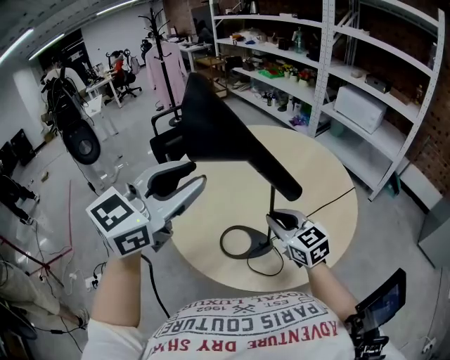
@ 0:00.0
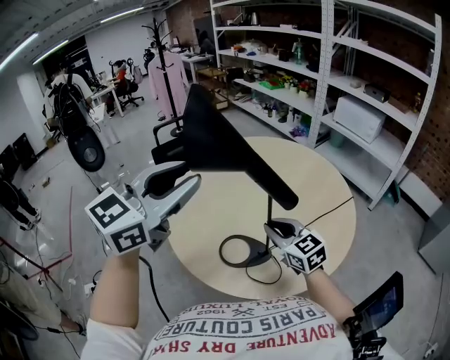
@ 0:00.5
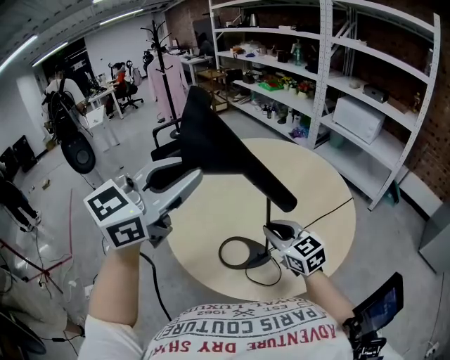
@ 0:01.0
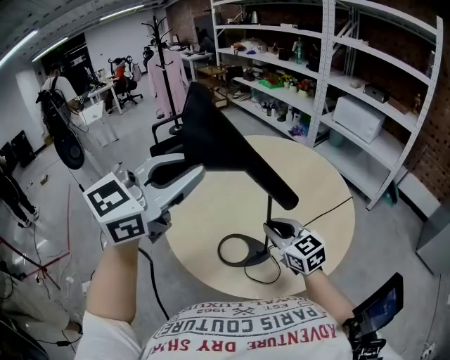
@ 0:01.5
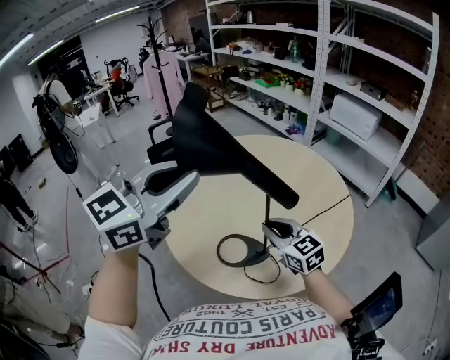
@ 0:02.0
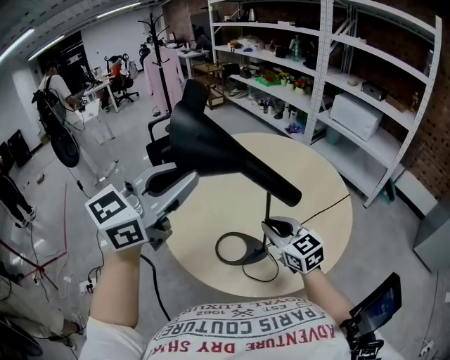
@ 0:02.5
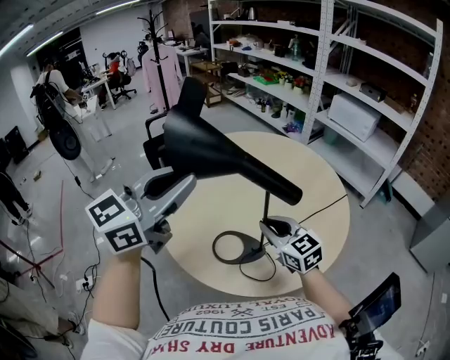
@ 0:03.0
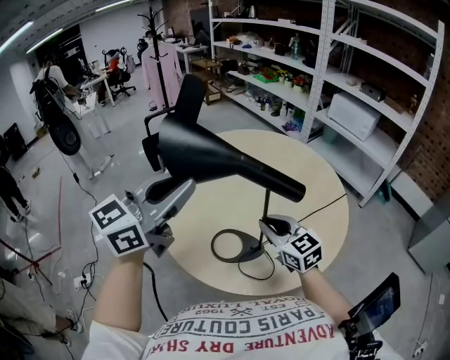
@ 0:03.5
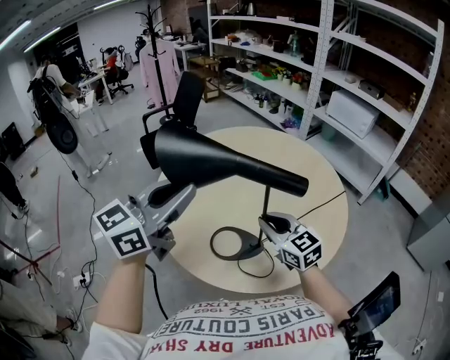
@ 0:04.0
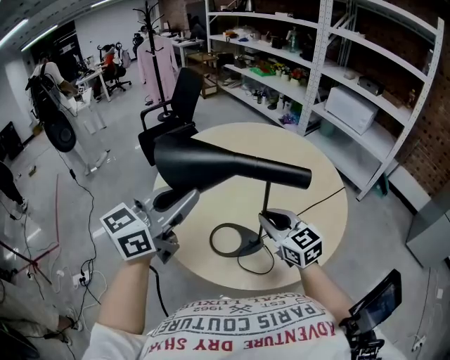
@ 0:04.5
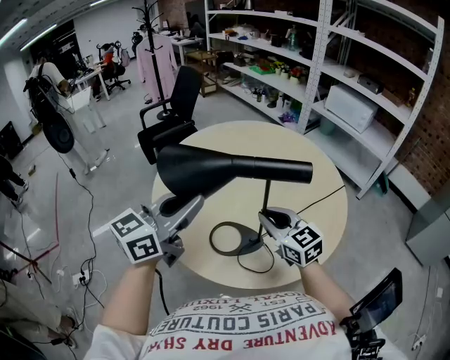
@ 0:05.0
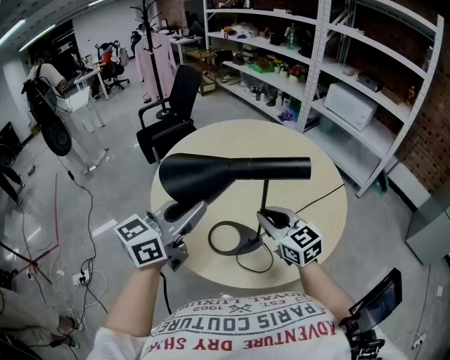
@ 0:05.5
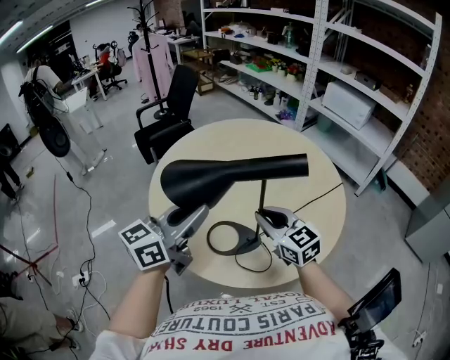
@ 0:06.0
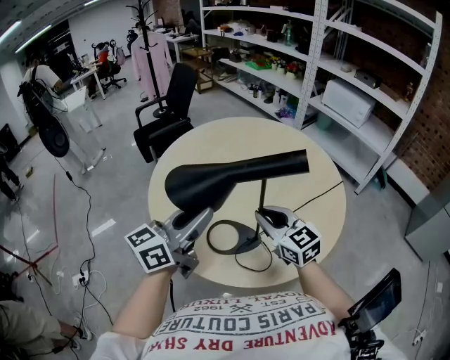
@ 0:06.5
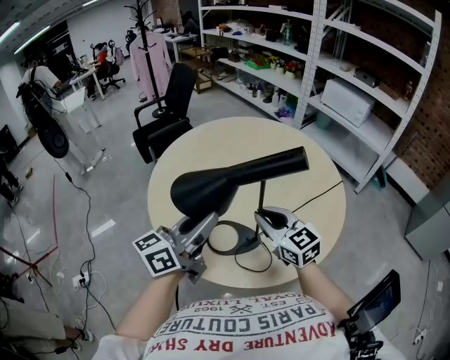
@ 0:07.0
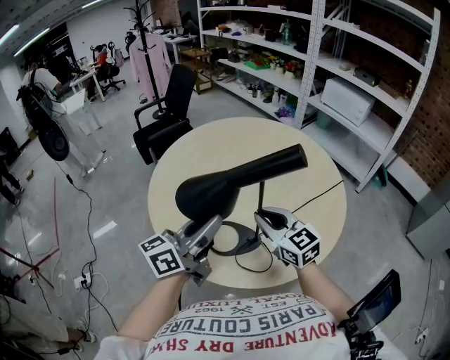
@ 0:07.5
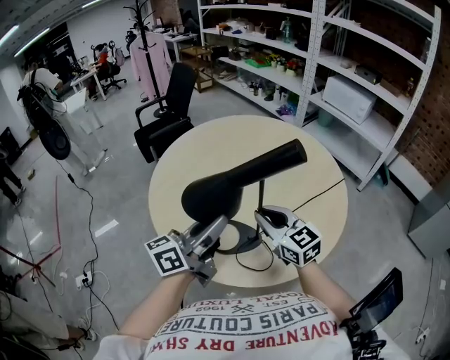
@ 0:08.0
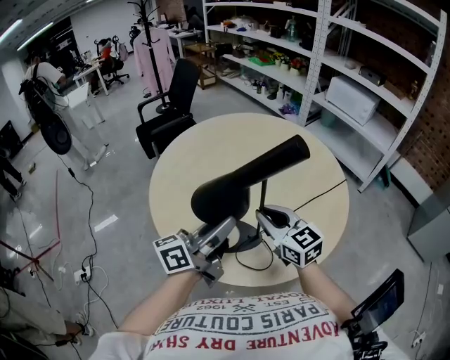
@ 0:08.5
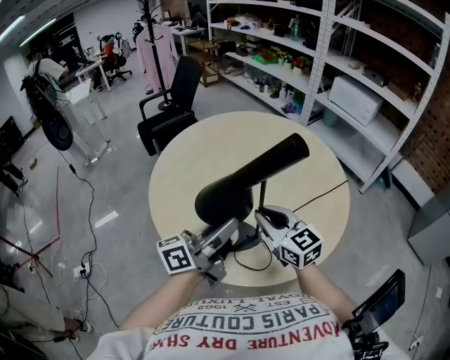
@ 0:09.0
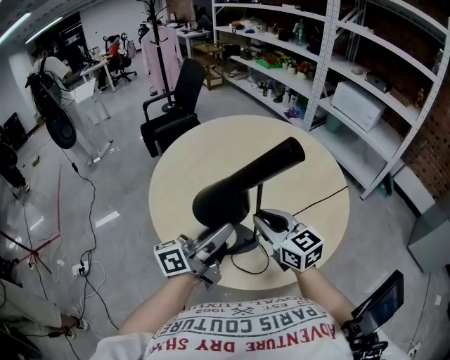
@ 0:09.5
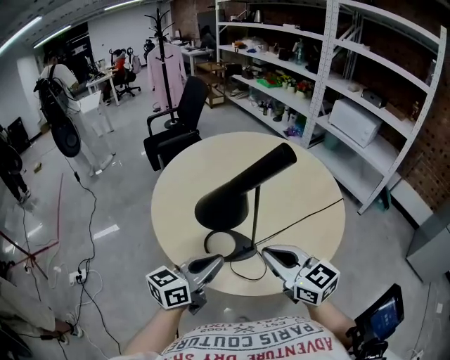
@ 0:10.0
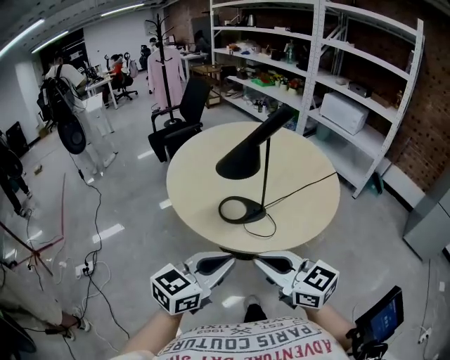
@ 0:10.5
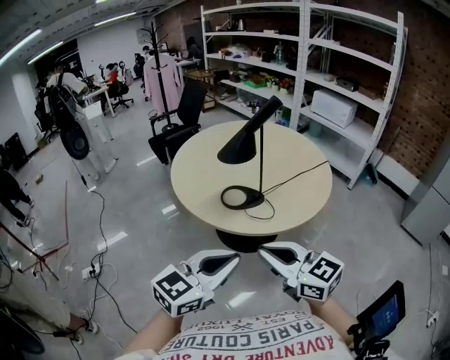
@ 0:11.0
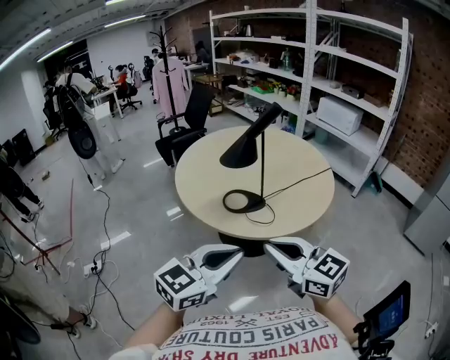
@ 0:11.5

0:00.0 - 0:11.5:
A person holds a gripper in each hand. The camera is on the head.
0:00.0 - 0:02.0: There are only small adjustments of the grippers.
0:02.0 - 0:04.0: The left gripper travels downward by approximately 5 cm.
0:04.0 - 0:06.0: The left gripper moves downward, approximately 10 cm.
0:06.0 - 0:07.5: There are only small adjustments of the grippers.
0:07.5 - 0:09.5: There are only small adjustments of the grippers.
0:09.5 - 0:11.5: The grippers both shift backward by about 35 cm. The left gripper rotates around the line of its fingers by approximately 50 degrees, clockwise from behind, and closes up.

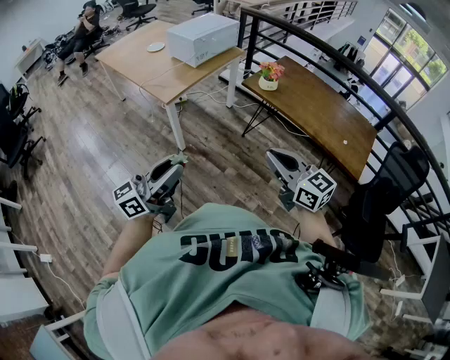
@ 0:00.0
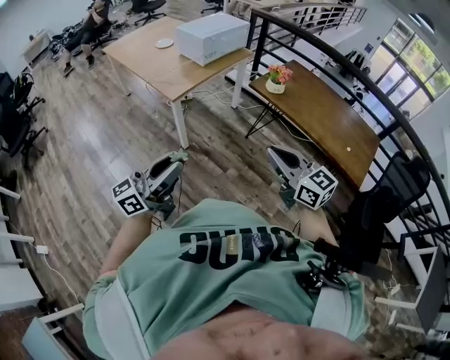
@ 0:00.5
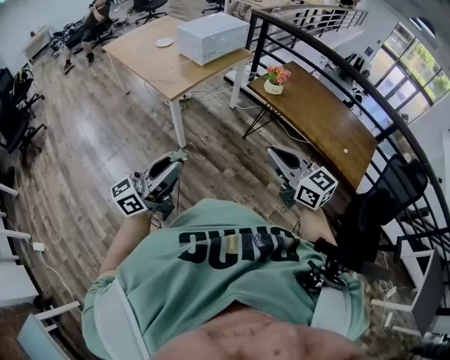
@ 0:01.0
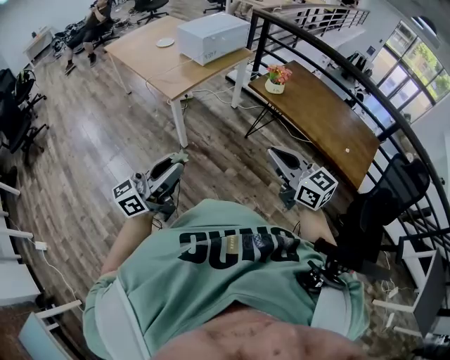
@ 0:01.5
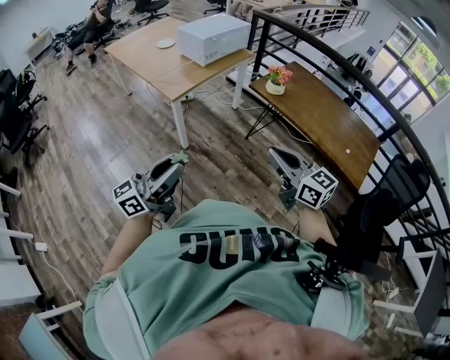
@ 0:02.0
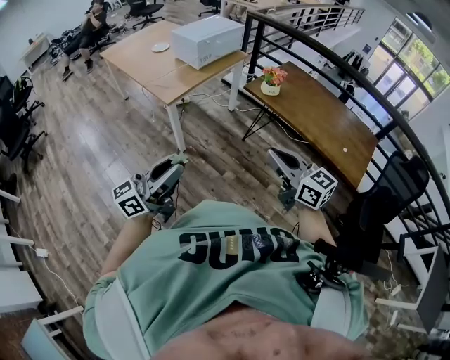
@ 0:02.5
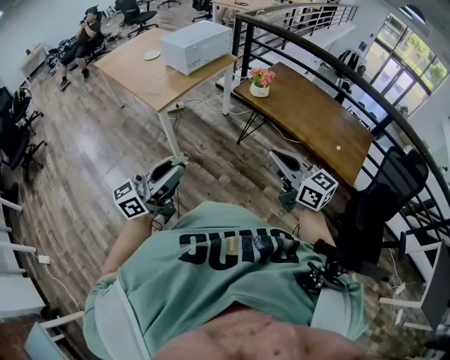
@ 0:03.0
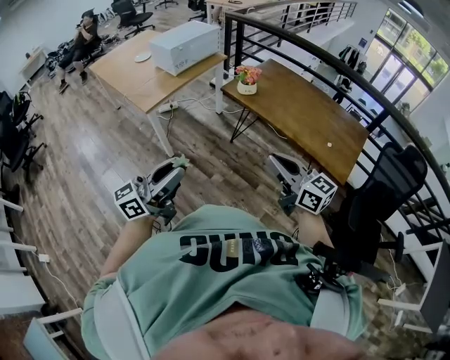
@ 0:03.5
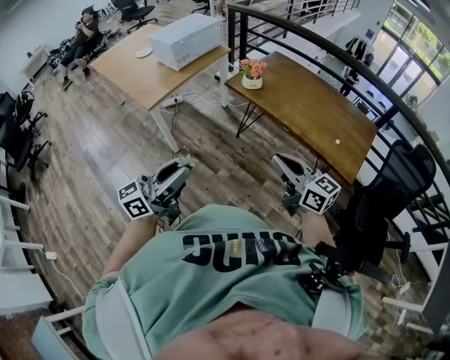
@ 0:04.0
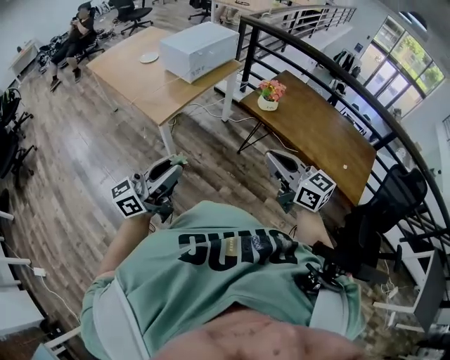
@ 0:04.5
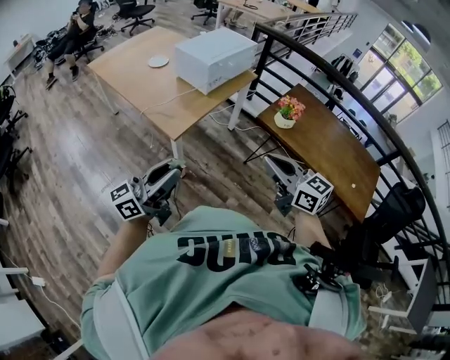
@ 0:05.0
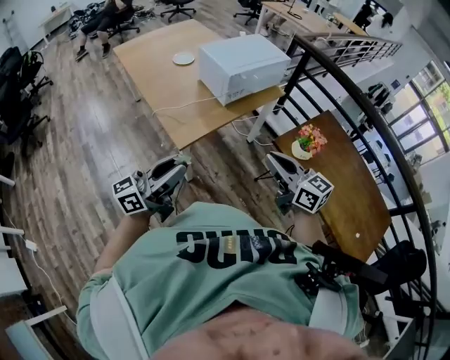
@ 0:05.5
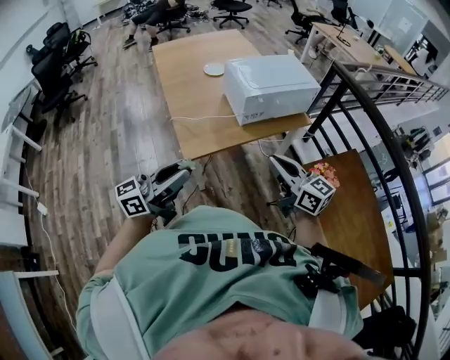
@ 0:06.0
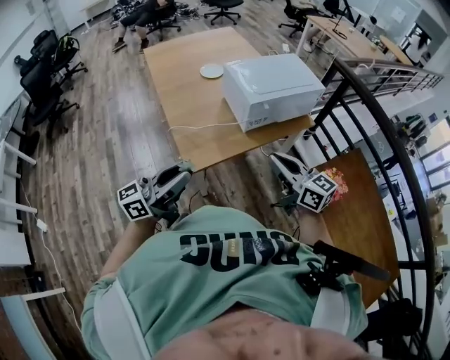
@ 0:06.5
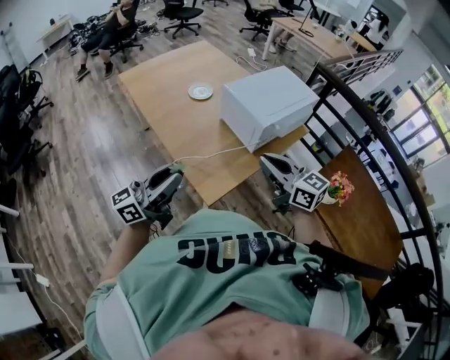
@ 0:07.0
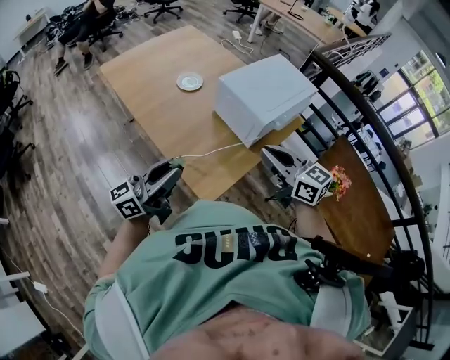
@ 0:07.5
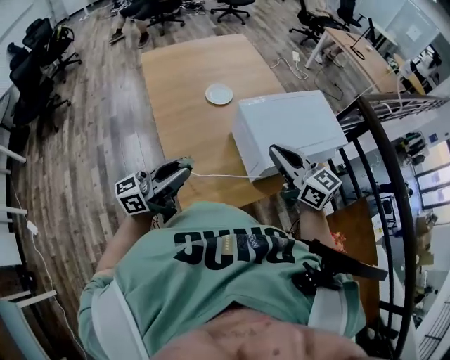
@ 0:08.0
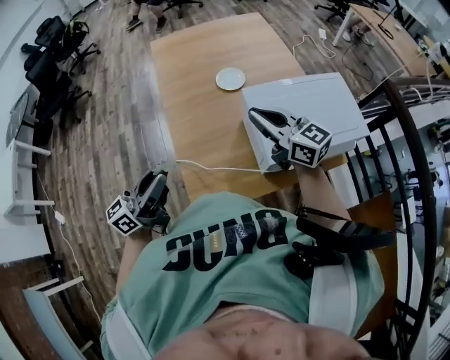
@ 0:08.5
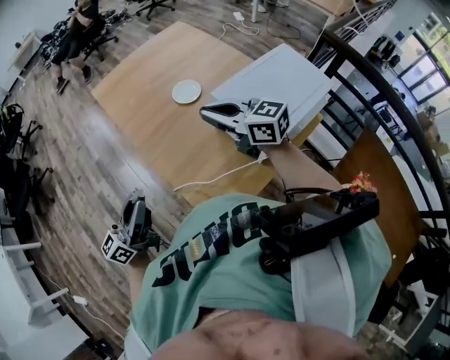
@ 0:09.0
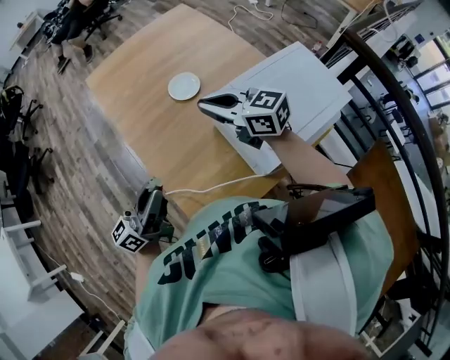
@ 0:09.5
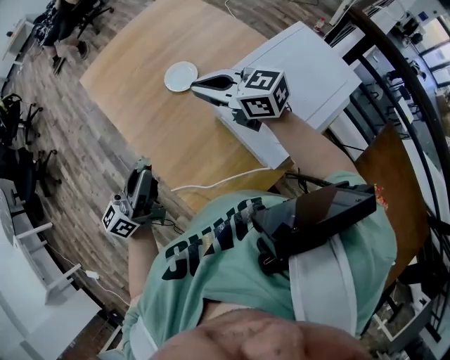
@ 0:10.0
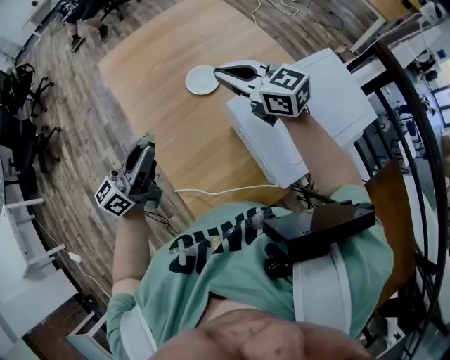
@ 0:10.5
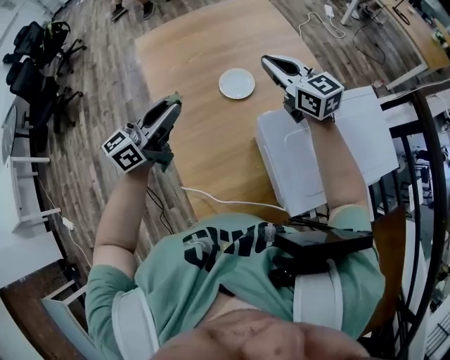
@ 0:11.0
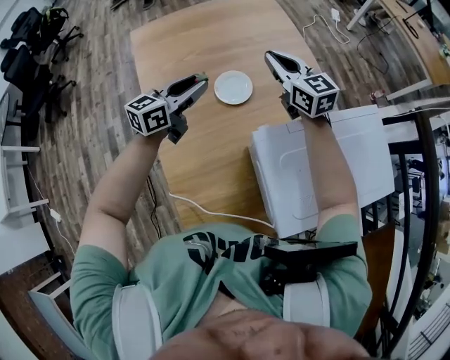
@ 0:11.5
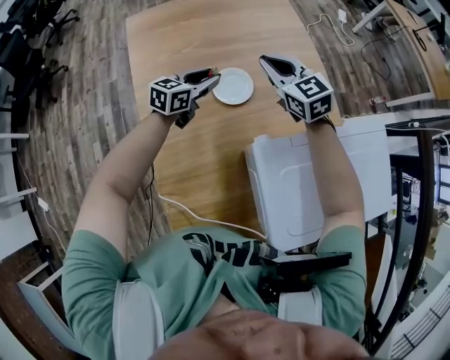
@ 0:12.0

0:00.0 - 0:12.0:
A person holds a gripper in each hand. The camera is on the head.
0:00.0 - 0:02.0: The grippers stay close to where they were, moving slightly.
0:02.0 - 0:04.0: Both grippers move to the right, some 20 cm.
0:04.0 - 0:06.0: The pair of grippers is taken roughly 50 cm. The right gripper swivels some 30 degrees, while the left gripper swivels some 20 degrees.
0:06.0 - 0:08.0: Both grippers travel together forward, about 35 cm.
0:08.0 - 0:10.0: The two grippers go roughly 20 cm forward.
0:10.0 - 0:12.0: The two grippers go roughly 30 cm forward and downward. The left gripper points its fingers roughly 30 degrees further downward, while the right gripper swivels some 30 degrees.

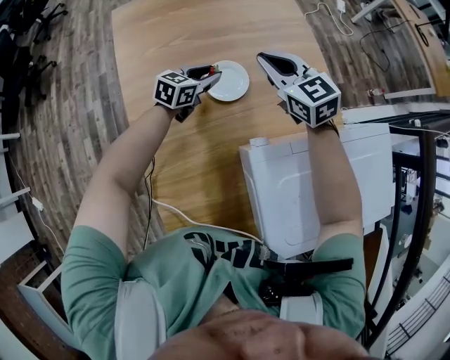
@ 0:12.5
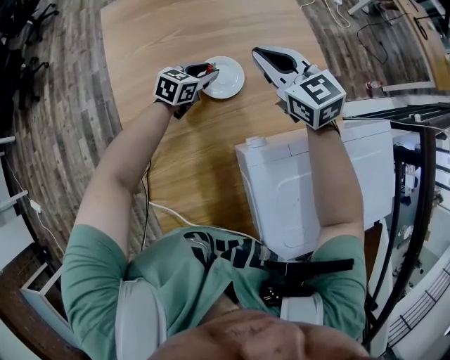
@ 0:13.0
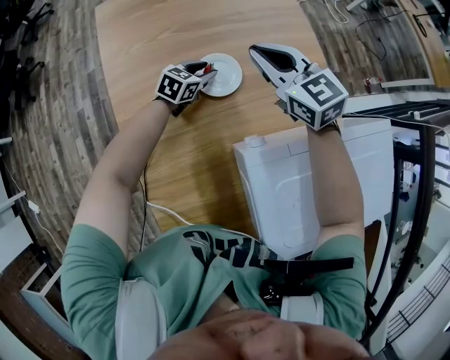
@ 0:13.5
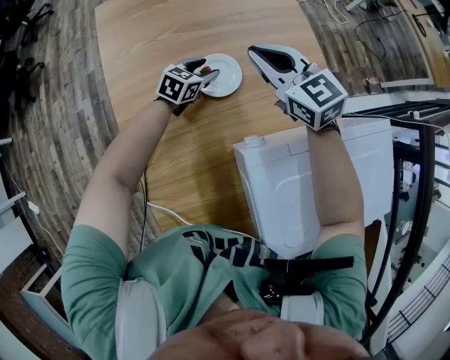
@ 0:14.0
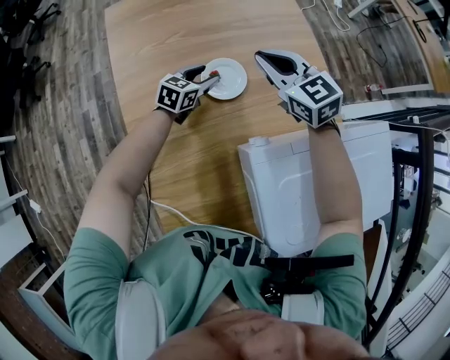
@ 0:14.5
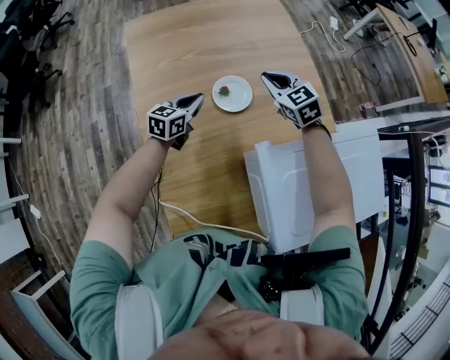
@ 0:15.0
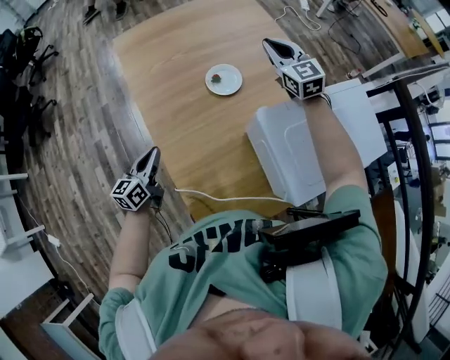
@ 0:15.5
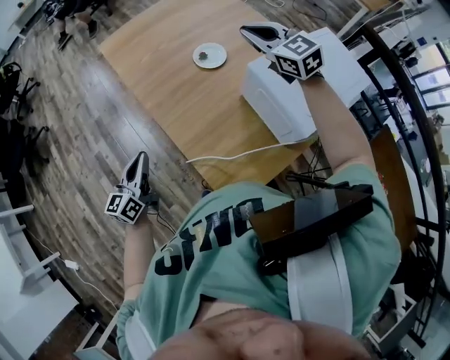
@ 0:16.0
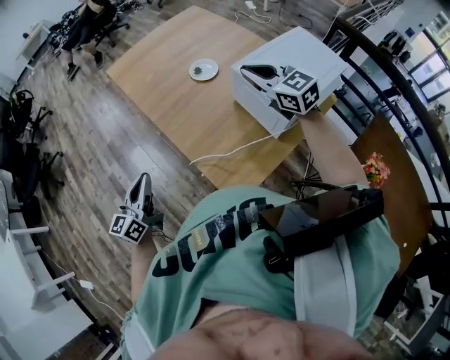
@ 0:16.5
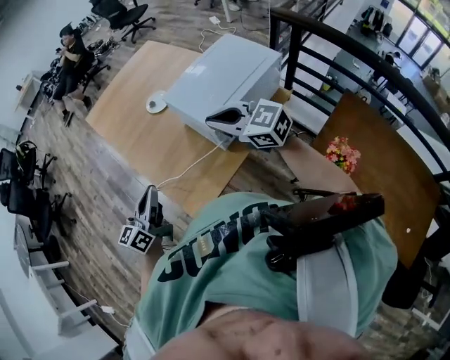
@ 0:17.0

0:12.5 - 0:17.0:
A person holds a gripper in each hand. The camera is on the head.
0:14.5 - 0:17.0: The pair of grippers is taken backward, approximately 50 cm. The left gripper travels upward by some 30 cm, tips its fingers upward by roughly 30 degrees, and closes its fingers.
